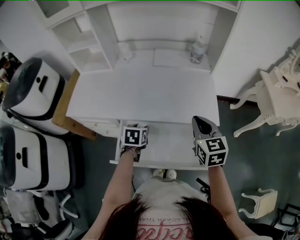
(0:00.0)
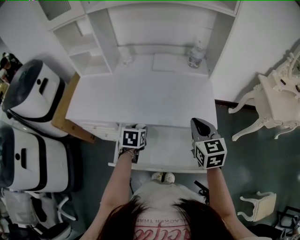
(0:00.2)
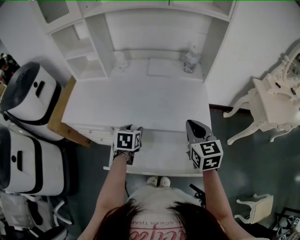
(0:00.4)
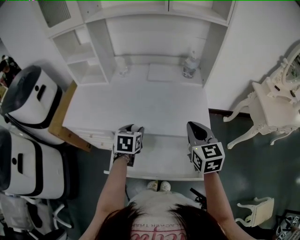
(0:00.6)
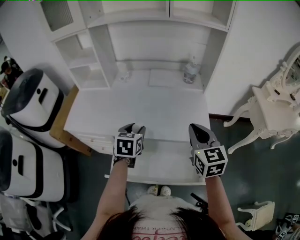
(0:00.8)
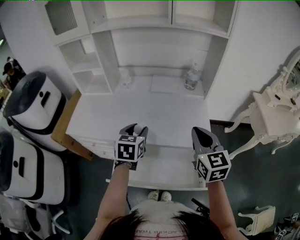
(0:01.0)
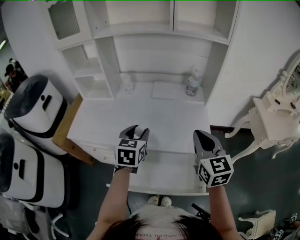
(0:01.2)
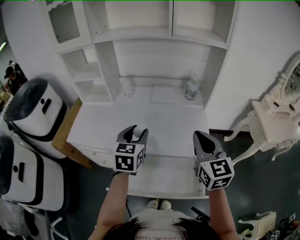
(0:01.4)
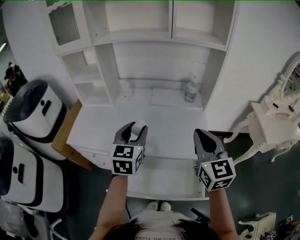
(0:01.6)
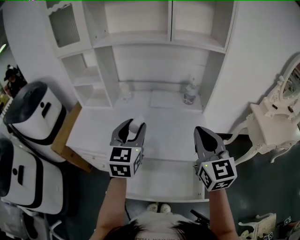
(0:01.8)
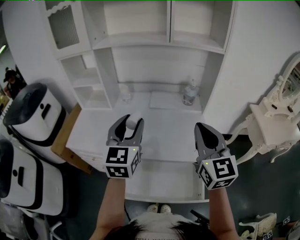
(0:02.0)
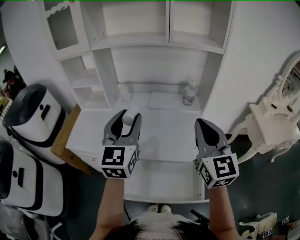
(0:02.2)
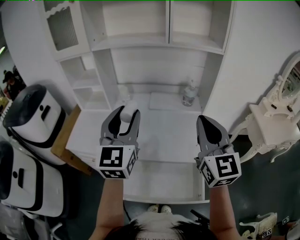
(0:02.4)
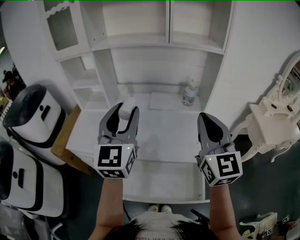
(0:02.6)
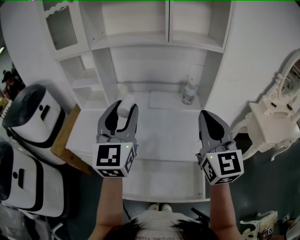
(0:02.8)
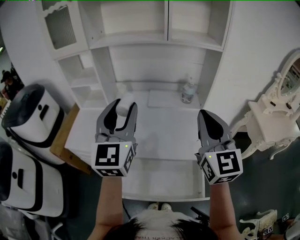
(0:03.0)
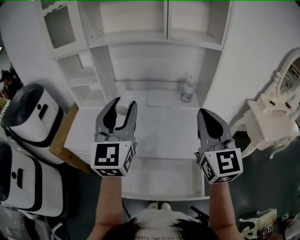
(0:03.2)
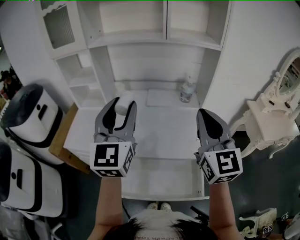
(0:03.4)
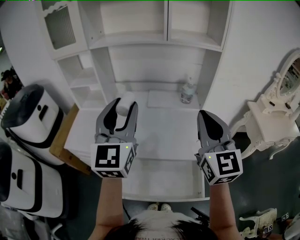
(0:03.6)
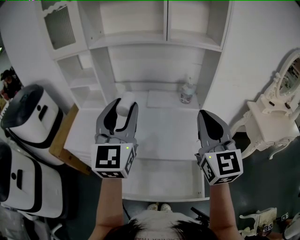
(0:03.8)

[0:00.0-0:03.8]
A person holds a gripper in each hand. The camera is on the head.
0:00.0 to 0:01.2: The right gripper shifts approximately 10 cm upward. Meanwhile the left gripper is displaced upward by some 20 cm, and rotates some 30 degrees.
0:01.2 to 0:02.6: The right gripper shifts roughly 15 cm upward, and changes its angle by about 20 degrees. Meanwhile the left gripper travels upward by some 20 cm, and tips its fingers upward by some 40 degrees.
0:02.6 to 0:03.8: The grippers stay close to where they were, moving slightly.

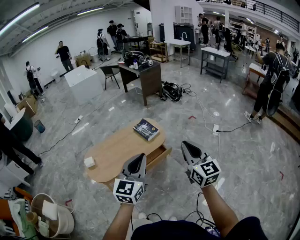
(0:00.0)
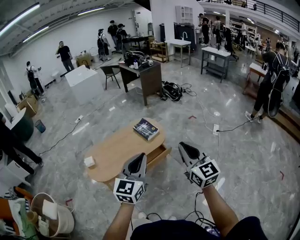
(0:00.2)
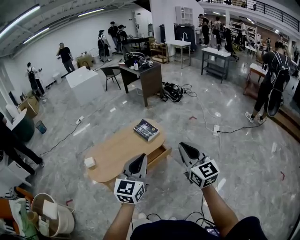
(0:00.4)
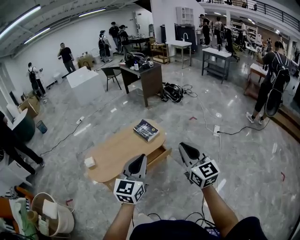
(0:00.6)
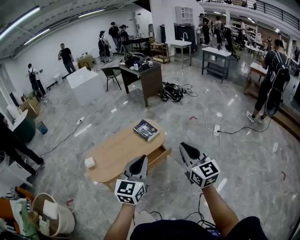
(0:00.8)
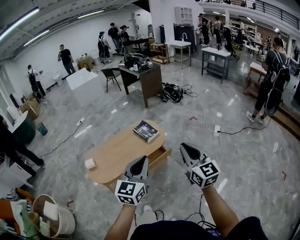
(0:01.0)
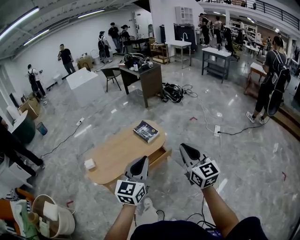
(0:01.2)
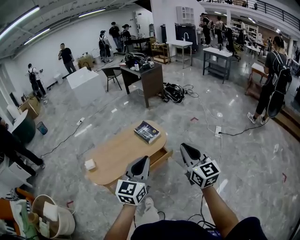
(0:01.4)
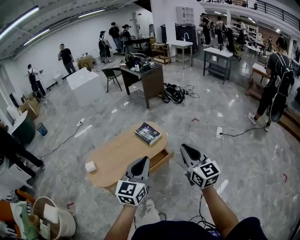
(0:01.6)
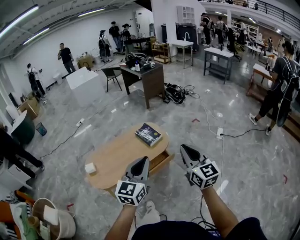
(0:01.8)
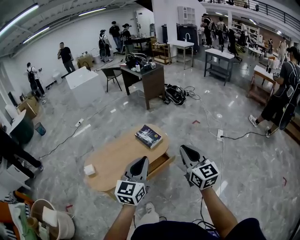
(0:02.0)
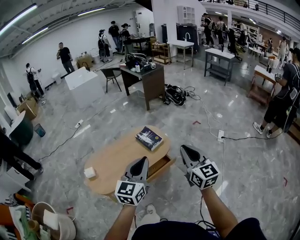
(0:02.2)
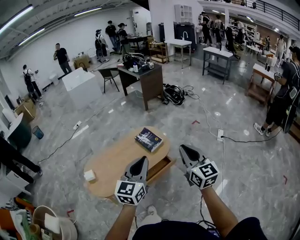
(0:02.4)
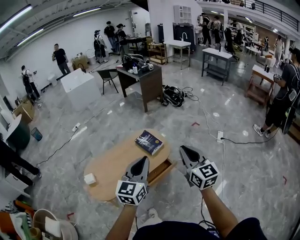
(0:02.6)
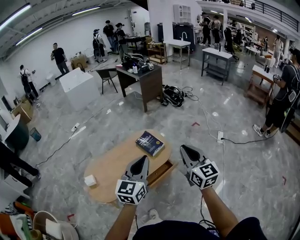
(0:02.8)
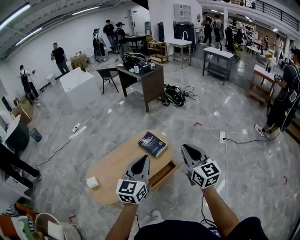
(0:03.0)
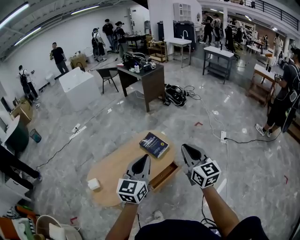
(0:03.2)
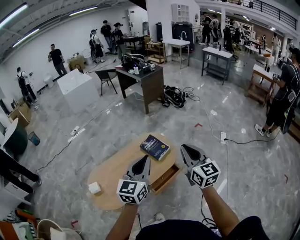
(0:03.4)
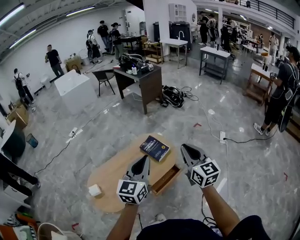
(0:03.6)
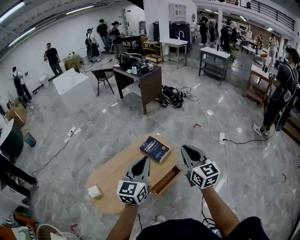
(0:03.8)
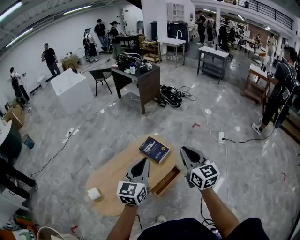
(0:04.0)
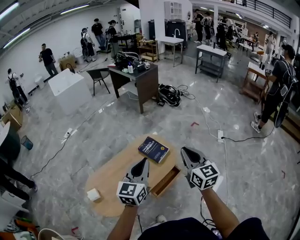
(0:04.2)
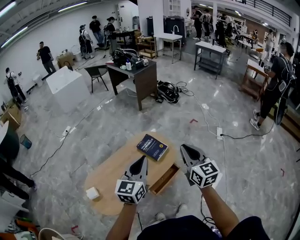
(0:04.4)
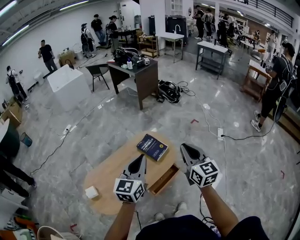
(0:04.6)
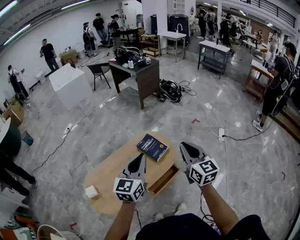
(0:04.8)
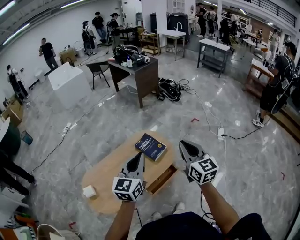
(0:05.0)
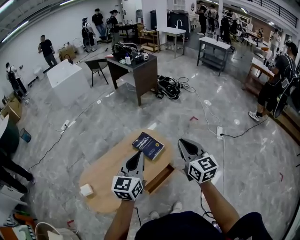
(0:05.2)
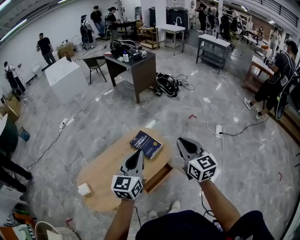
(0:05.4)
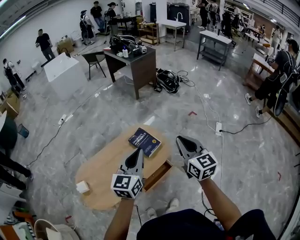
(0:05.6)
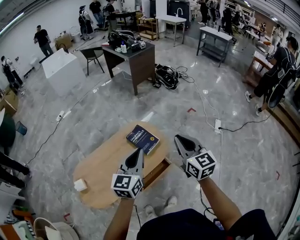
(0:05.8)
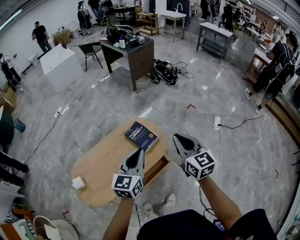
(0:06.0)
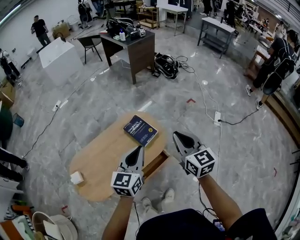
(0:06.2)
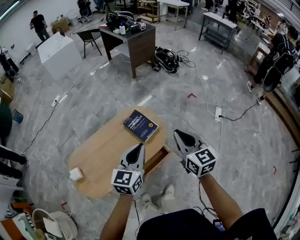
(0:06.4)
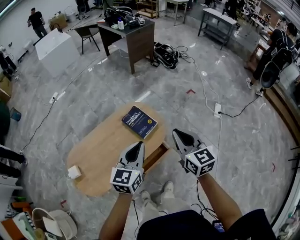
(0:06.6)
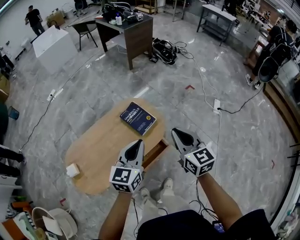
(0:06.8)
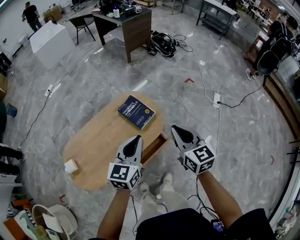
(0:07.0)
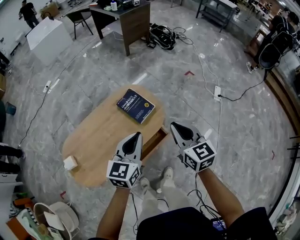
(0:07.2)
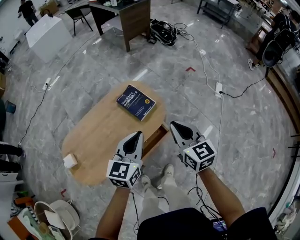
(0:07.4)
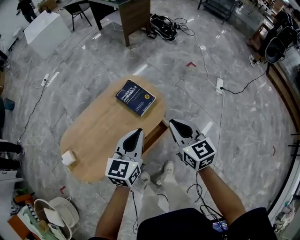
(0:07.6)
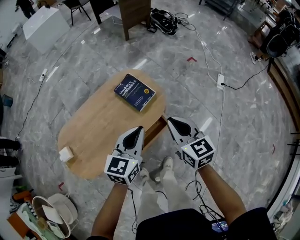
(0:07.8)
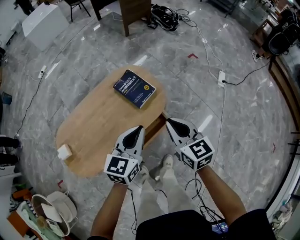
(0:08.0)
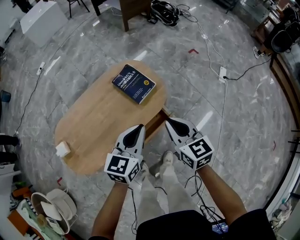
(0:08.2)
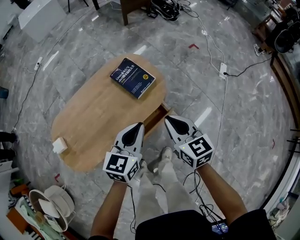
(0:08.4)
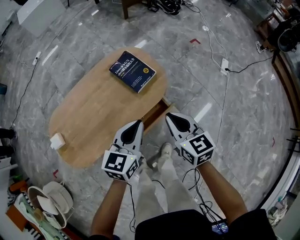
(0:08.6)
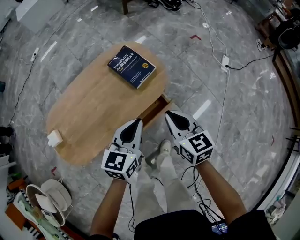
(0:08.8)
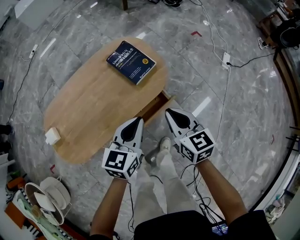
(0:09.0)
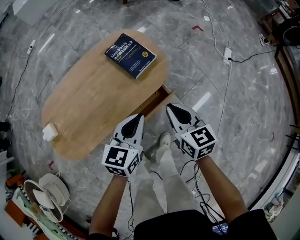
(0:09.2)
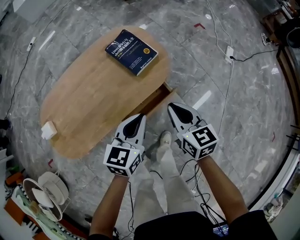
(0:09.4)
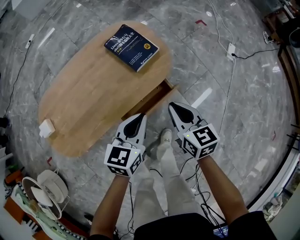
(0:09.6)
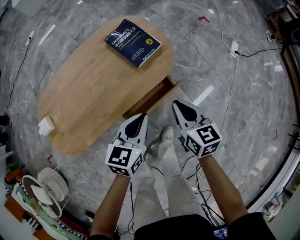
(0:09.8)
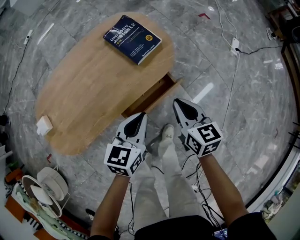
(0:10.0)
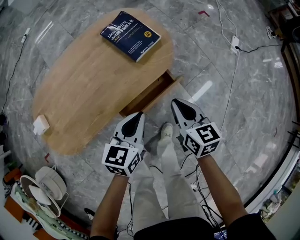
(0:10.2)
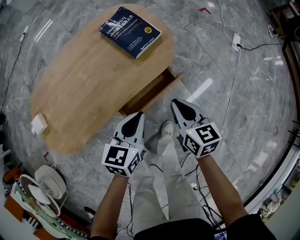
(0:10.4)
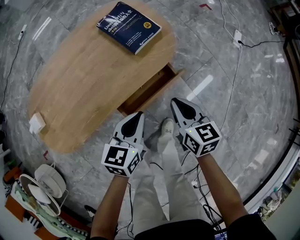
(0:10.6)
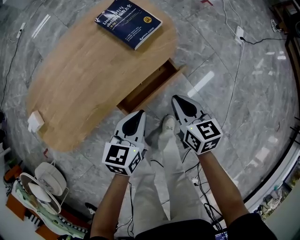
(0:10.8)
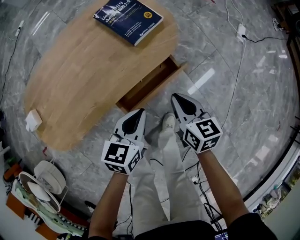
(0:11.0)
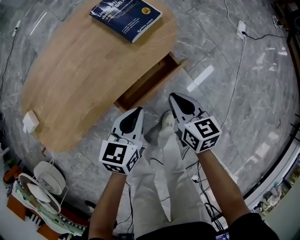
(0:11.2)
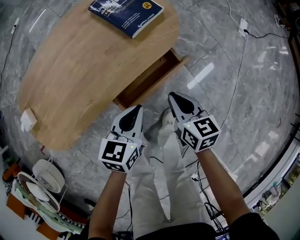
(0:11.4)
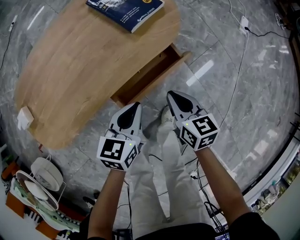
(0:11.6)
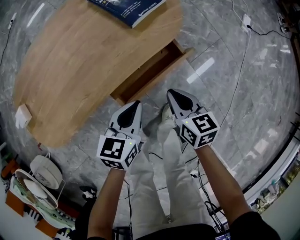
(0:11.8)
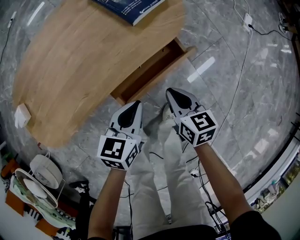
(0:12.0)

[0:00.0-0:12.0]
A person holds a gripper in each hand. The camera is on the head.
0:00.0 to 0:01.6: The left gripper shifts by about 5 cm.
0:01.6 to 0:03.0: The grippers both shift forward and to the left by some 20 cm.
0:03.0 to 0:04.4: The grippers both shift forward and to the left by some 10 cm.
0:04.4 to 0:06.0: The right gripper is displaced forward and to the right by some 10 cm. The left gripper goes about 10 cm to the right, forward and downward.
0:06.0 to 0:07.6: The grippers both shift downward by some 10 cm.
0:07.6 to 0:09.0: The two grippers go approximately 15 cm downward.
0:09.0 to 0:10.4: Both grippers travel together downward, roughly 15 cm.
0:10.4 to 0:12.0: Both grippers travel together downward, approximately 15 cm.

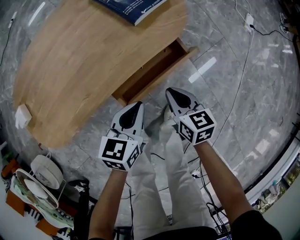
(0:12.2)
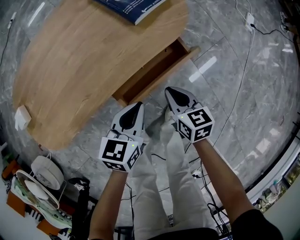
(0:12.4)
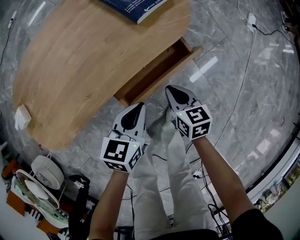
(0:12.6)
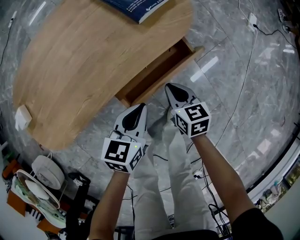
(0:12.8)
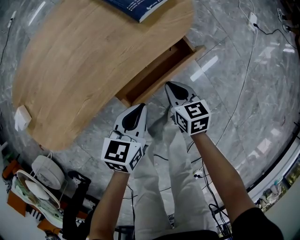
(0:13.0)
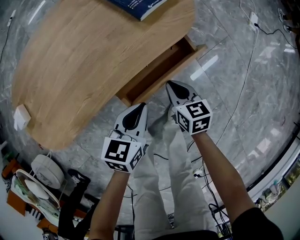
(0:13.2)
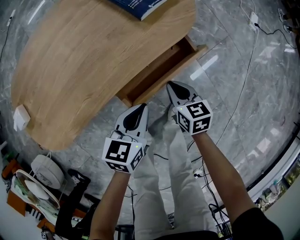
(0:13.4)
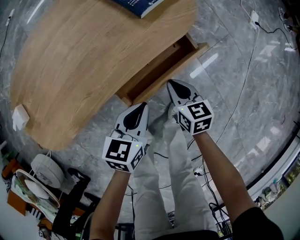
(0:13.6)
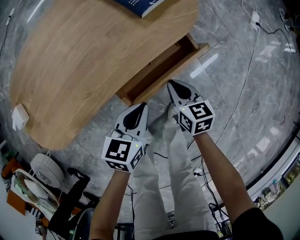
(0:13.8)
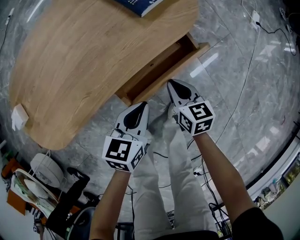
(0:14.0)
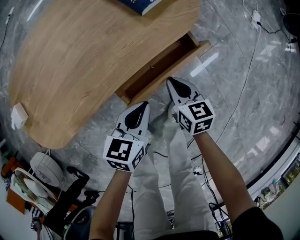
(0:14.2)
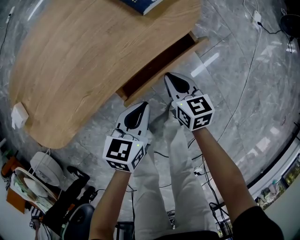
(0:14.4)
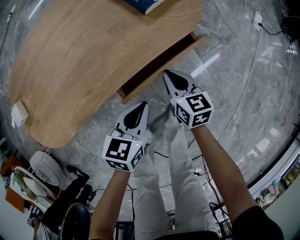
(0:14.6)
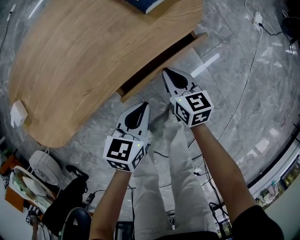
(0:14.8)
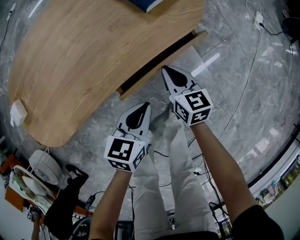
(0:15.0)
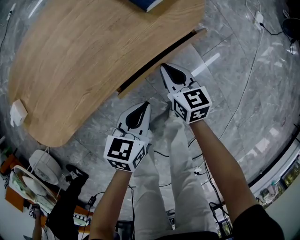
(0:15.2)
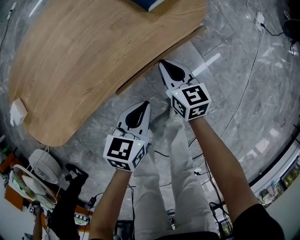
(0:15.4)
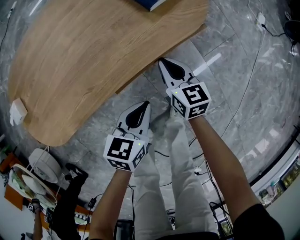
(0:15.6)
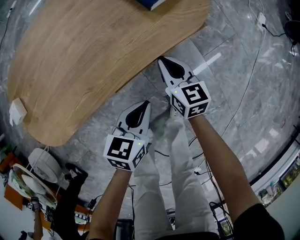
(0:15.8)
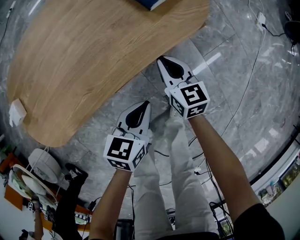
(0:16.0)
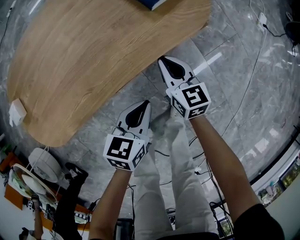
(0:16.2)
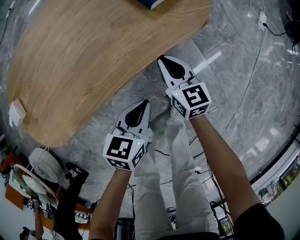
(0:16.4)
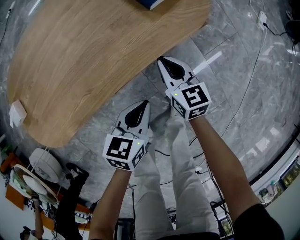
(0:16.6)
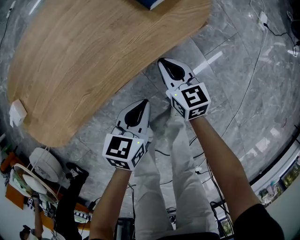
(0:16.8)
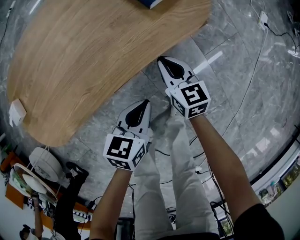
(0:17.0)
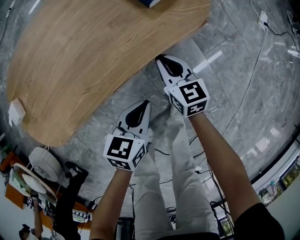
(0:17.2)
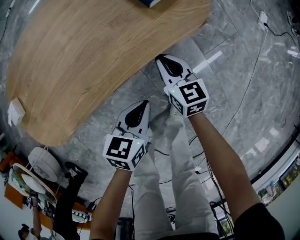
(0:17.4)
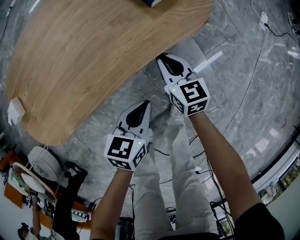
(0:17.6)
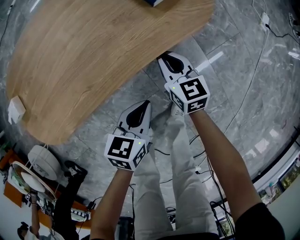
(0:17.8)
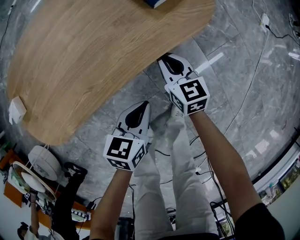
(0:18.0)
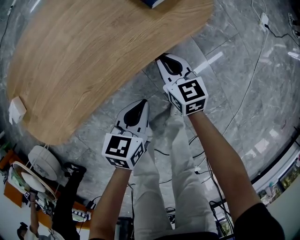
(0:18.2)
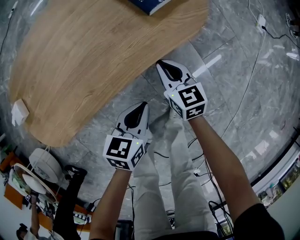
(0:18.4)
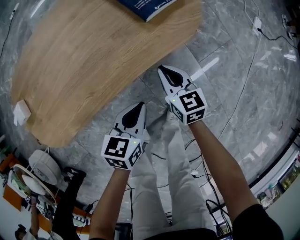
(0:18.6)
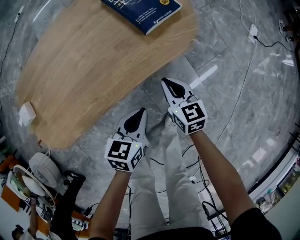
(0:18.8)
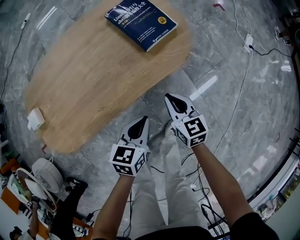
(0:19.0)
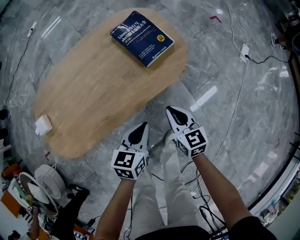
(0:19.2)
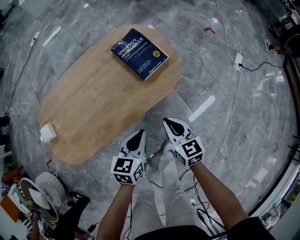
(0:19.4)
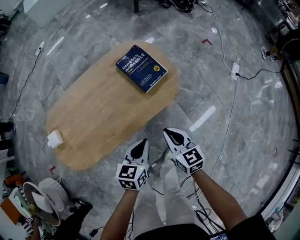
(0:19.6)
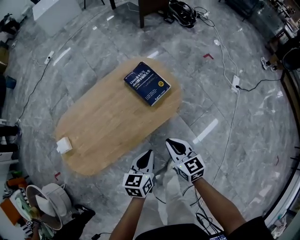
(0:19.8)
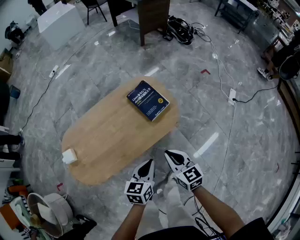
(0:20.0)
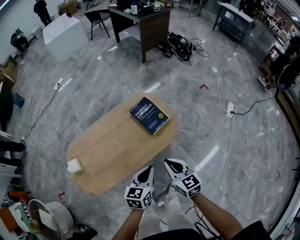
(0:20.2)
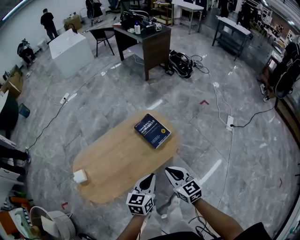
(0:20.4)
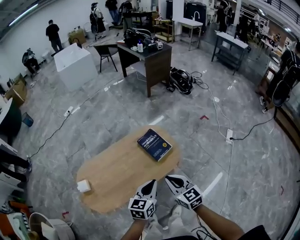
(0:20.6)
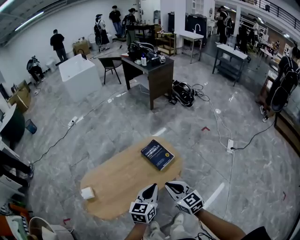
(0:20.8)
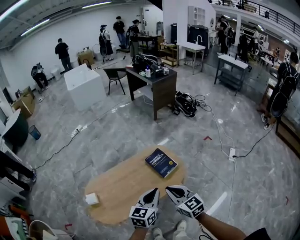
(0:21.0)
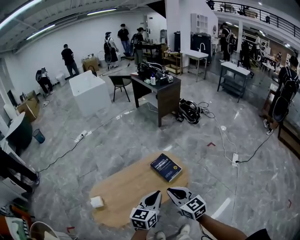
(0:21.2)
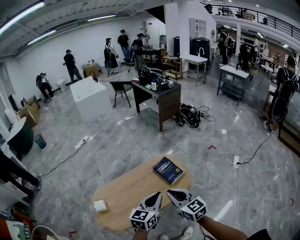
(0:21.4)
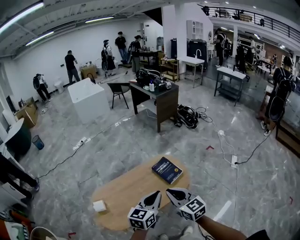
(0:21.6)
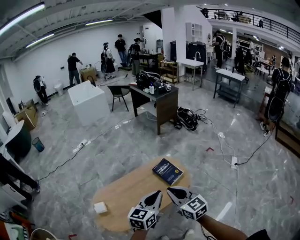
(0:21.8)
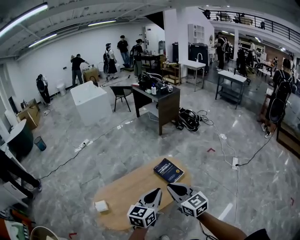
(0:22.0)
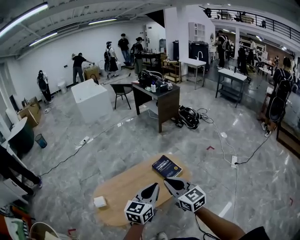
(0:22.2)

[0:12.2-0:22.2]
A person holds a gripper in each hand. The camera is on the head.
0:12.2 to 0:13.6: The right gripper moves downward, approximately 5 cm.
0:13.6 to 0:15.0: There are only small adjustments of the grippers.
0:15.0 to 0:18.0: The grippers move only a little.
0:18.0 to 0:19.4: Both grippers move upward, approximately 20 cm.
0:19.4 to 0:20.8: Both grippers move upward, some 30 cm.
0:20.8 to 0:22.2: The right gripper goes roughly 15 cm upward and to the left; the left gripper shifts roughly 15 cm upward, to the left and backward.
